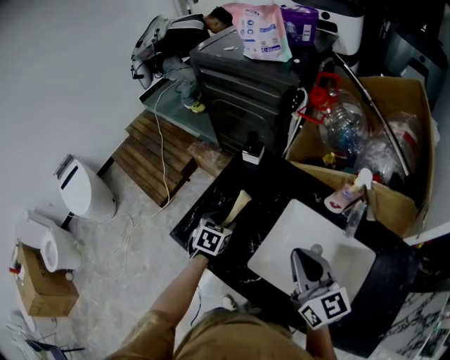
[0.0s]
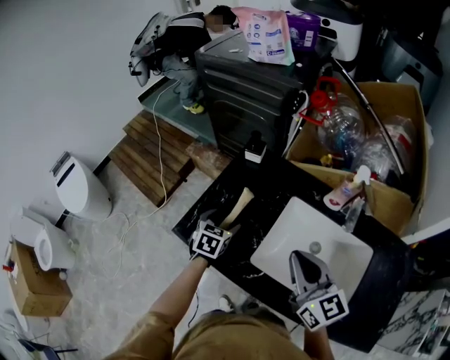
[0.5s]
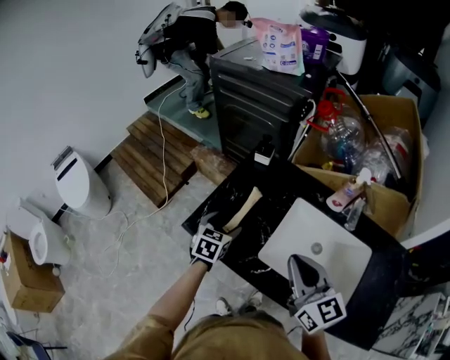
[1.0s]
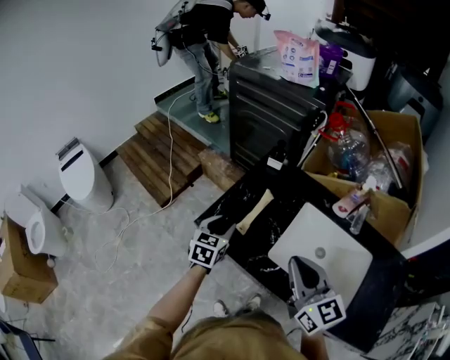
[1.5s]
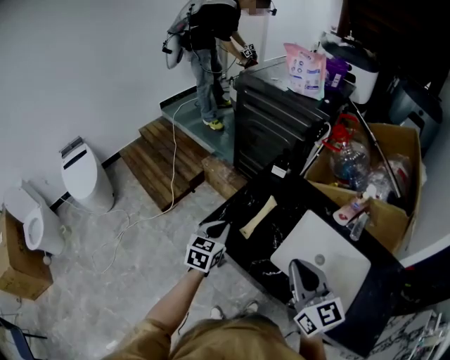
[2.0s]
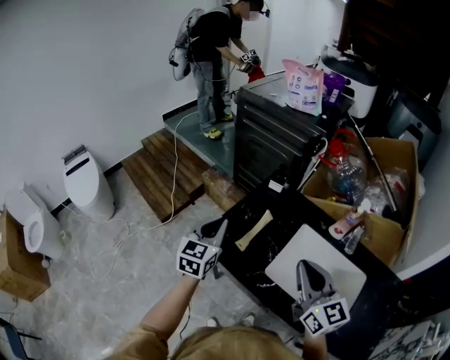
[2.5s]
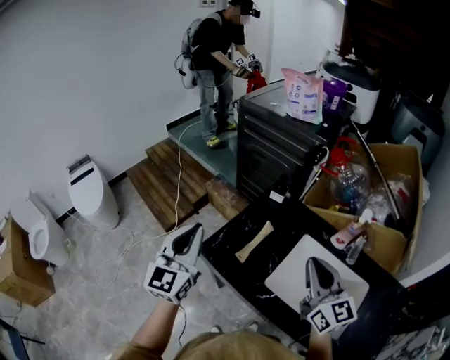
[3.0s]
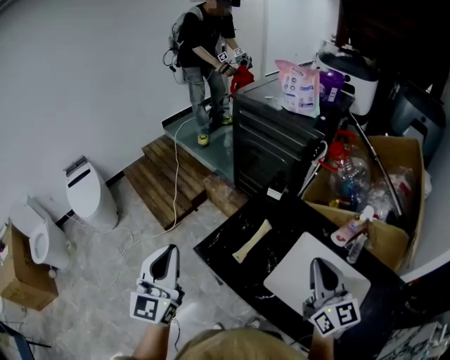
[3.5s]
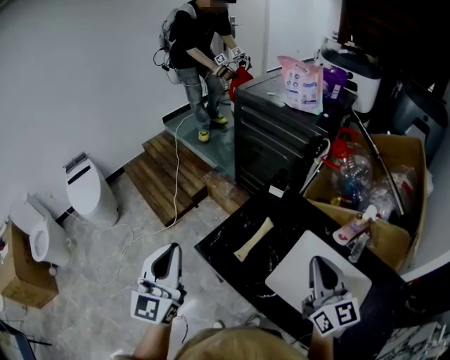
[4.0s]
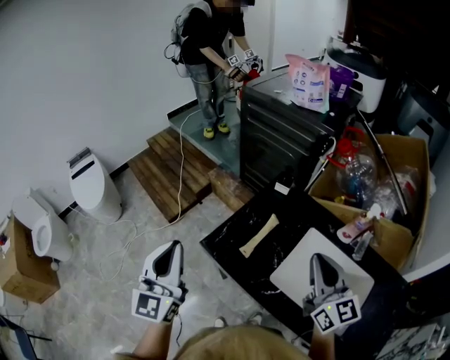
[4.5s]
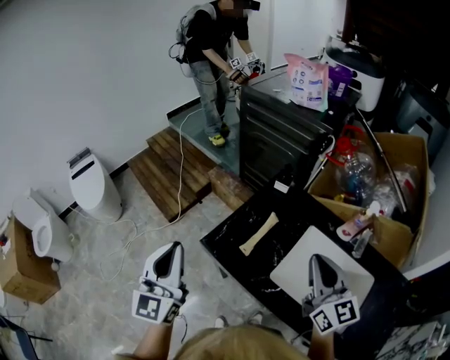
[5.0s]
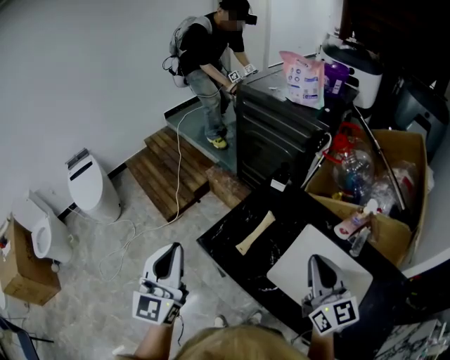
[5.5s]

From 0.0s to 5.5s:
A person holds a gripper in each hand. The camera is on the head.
From 0.0s to 2.0s: The right gripper is displaced to the left and backward by roughly 15 cm, while the left gripper is displaced to the left, backward and upward by roughly 20 cm, rotates approximately 30 degrees, and closes.
From 2.0s to 3.5s: The left gripper heads upward and to the left, covering some 25 cm, and points its fingers some 30 degrees further upward. The right gripper travels to the right and forward by some 10 cm.
From 3.5s to 5.5s: The grippers make only small movements.

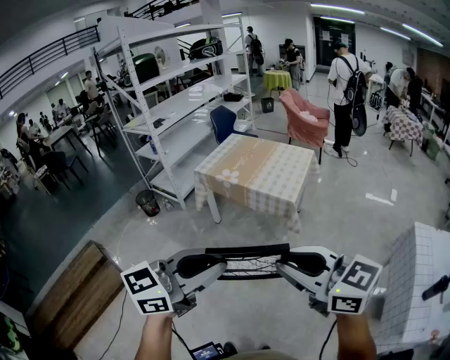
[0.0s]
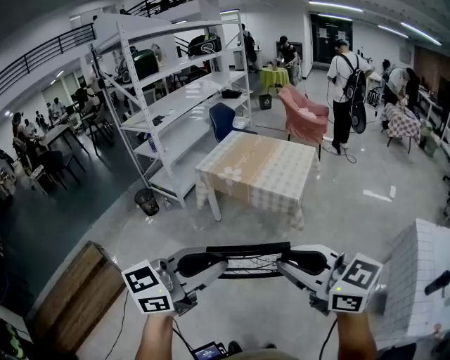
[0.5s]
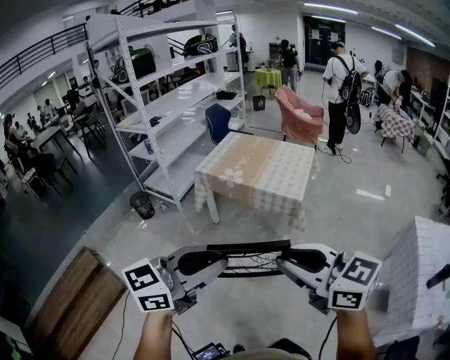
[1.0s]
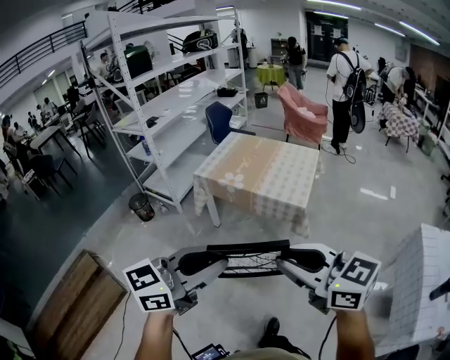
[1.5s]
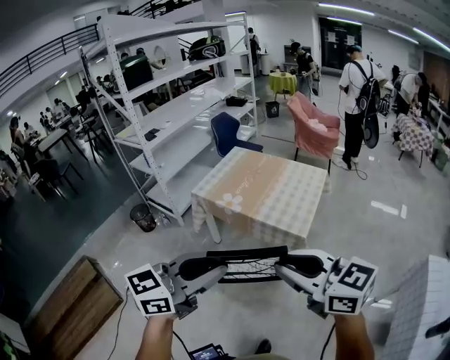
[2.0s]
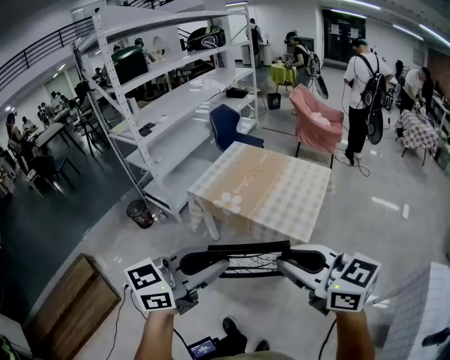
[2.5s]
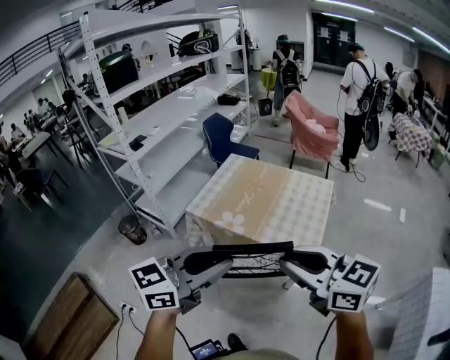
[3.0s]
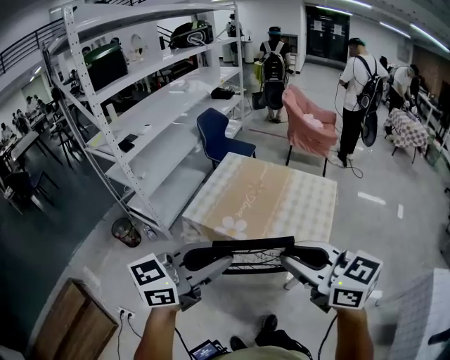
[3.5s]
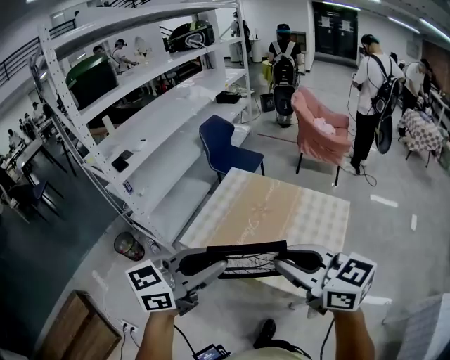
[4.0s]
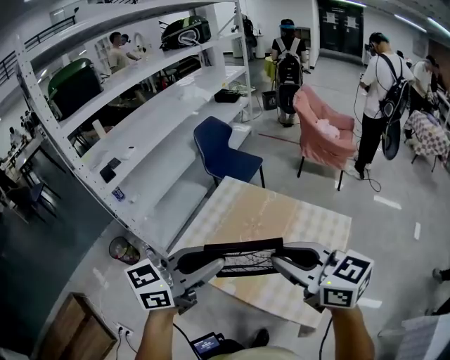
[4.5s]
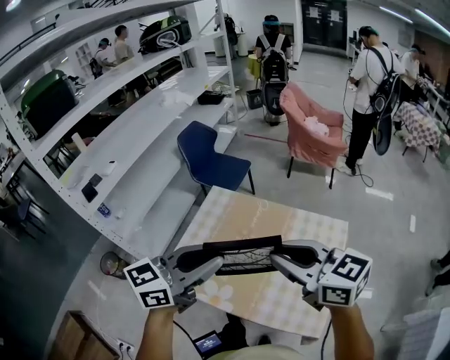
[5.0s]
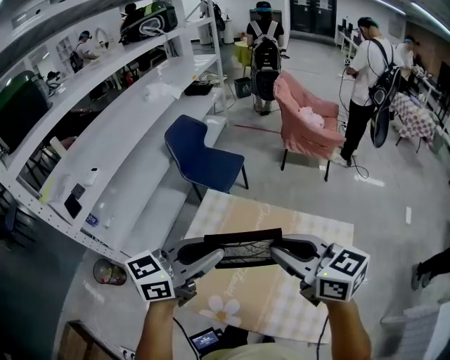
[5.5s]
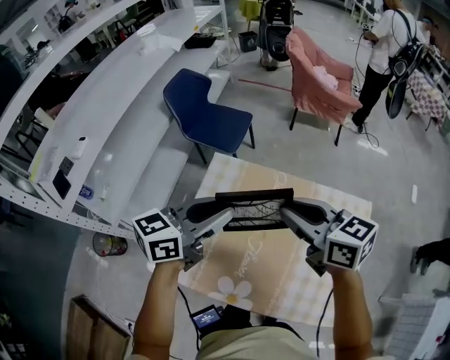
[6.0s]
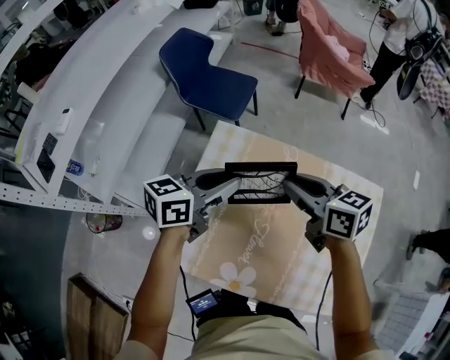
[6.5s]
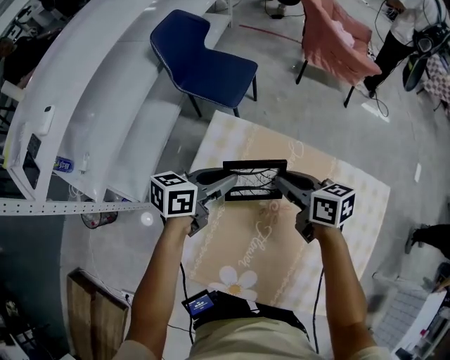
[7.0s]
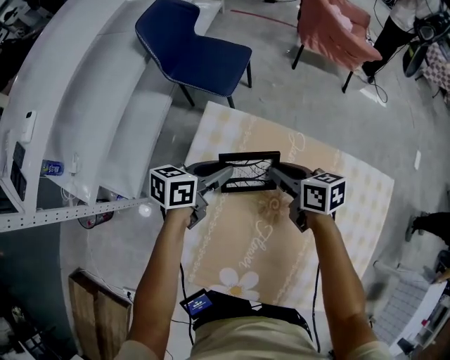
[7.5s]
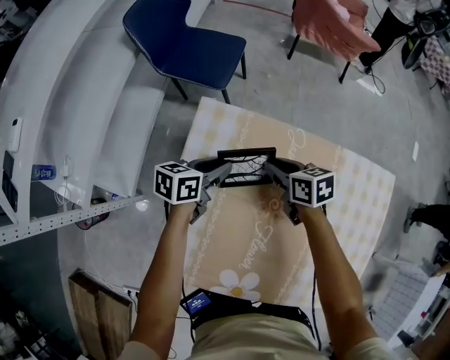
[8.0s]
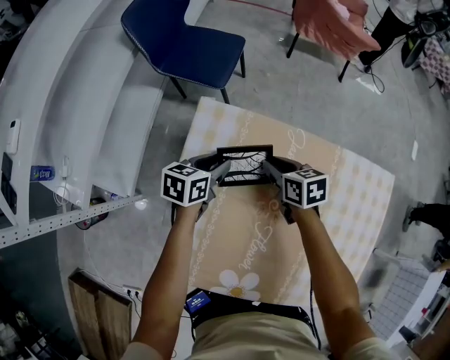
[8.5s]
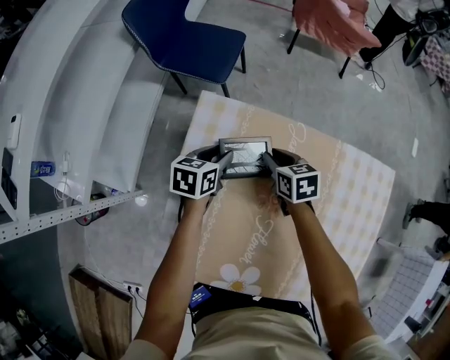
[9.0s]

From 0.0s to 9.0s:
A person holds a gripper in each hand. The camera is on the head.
From 0.0s to 2.0s: Both grippers move forward, about 25 cm.
From 2.0s to 4.5s: Both grippers are carried forward, approximately 60 cm.
From 4.5s to 7.0s: The pair of grippers is taken forward, roughly 40 cm. The two grippers go roughly 35 cm downward. The left gripper changes its angle by about 30 degrees; the right gripper changes its angle by about 40 degrees.
From 7.0s to 9.0s: The right gripper is displaced downward by approximately 15 cm, and turns by approximately 20 degrees. Meanwhile the left gripper travels downward and forward by some 15 cm, and turns by roughly 20 degrees.

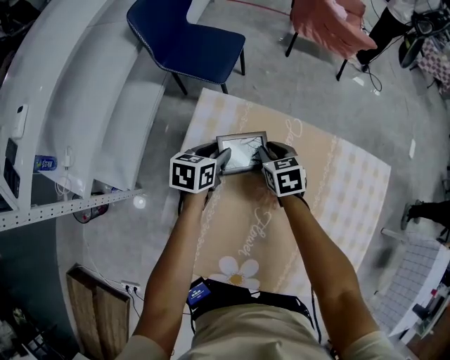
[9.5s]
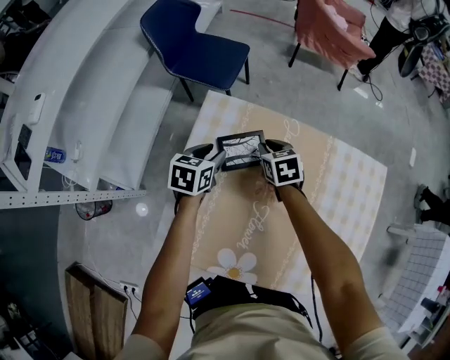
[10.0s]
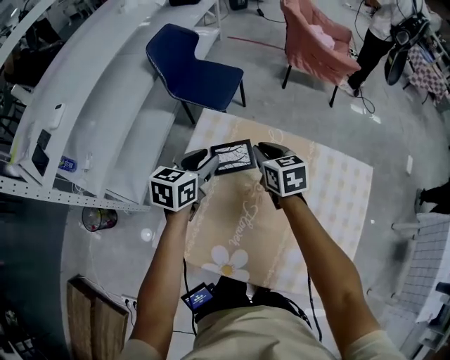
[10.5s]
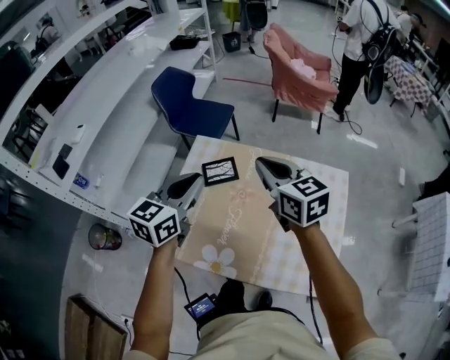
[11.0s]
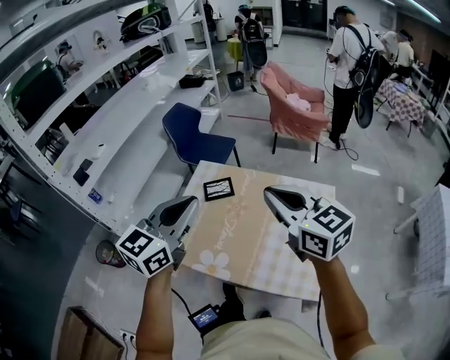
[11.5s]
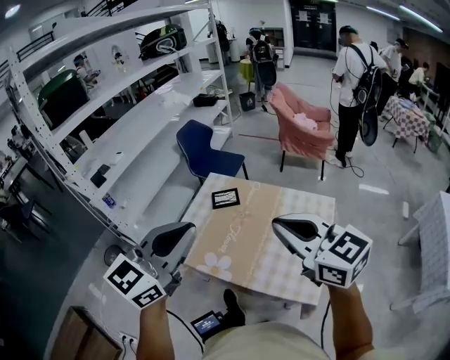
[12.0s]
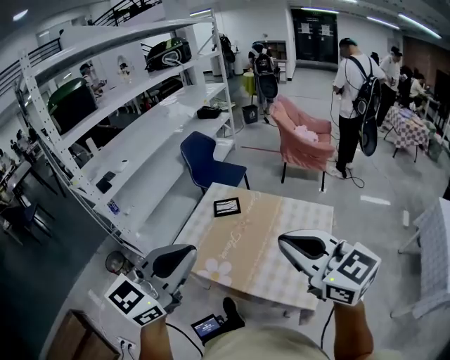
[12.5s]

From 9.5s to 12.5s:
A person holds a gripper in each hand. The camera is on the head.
From 9.5s to 11.0s: Both grippers travel together upward and backward, approximately 40 cm. The right gripper tips its fingers upward by about 30 degrees, and closes its fingers. The left gripper rotates approximately 30 degrees, and closes up.
From 11.0s to 12.5s: The grippers both shift backward and upward by roughly 40 cm. The right gripper rotates some 20 degrees, while the left gripper rotates approximately 20 degrees.

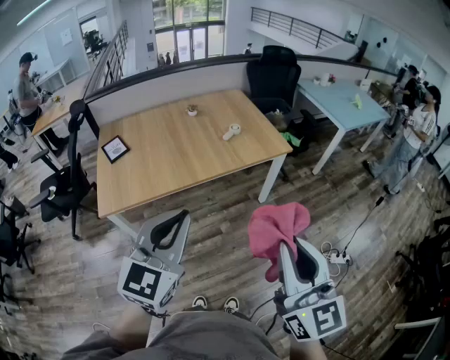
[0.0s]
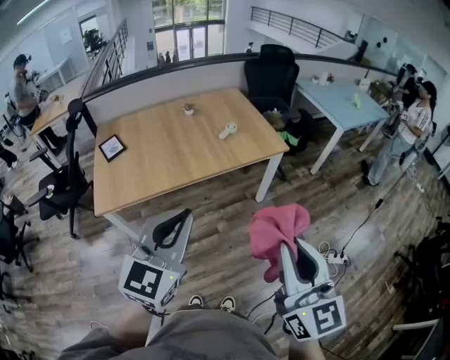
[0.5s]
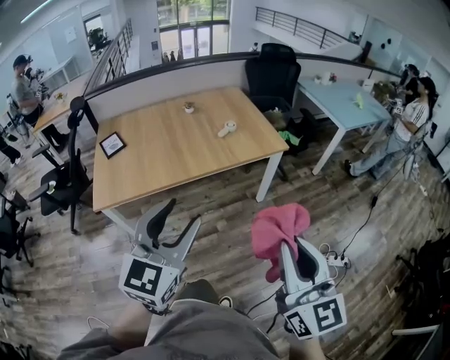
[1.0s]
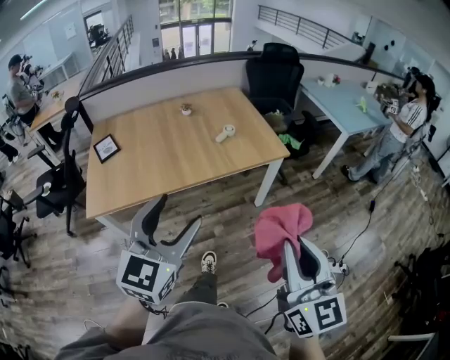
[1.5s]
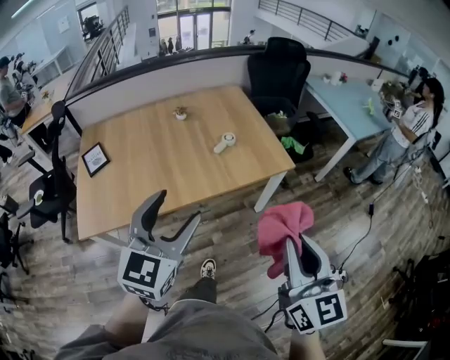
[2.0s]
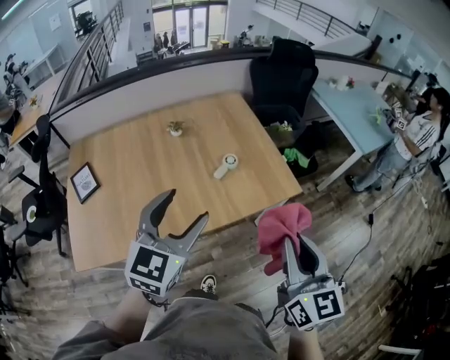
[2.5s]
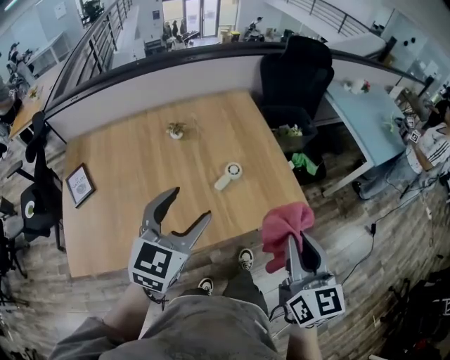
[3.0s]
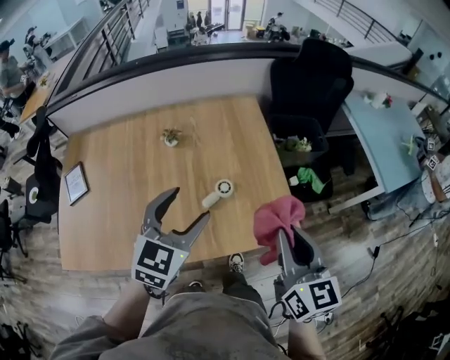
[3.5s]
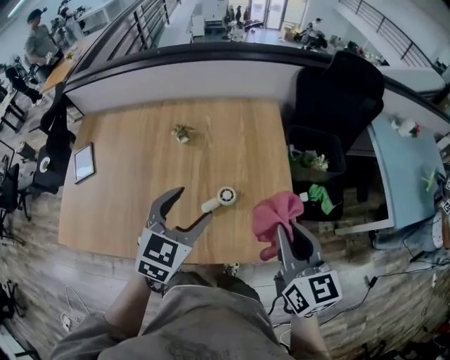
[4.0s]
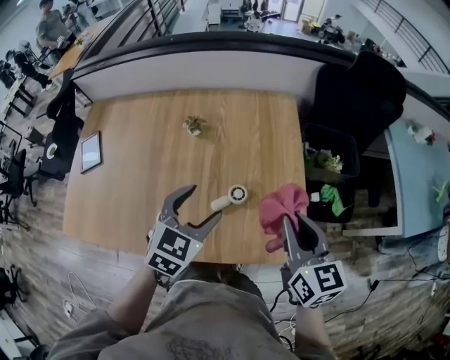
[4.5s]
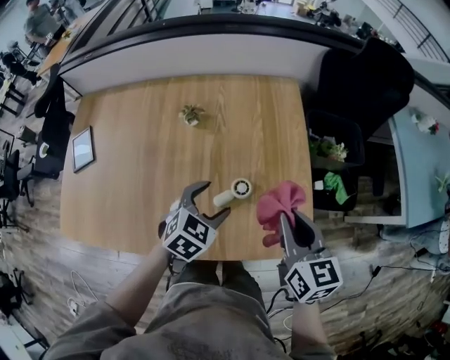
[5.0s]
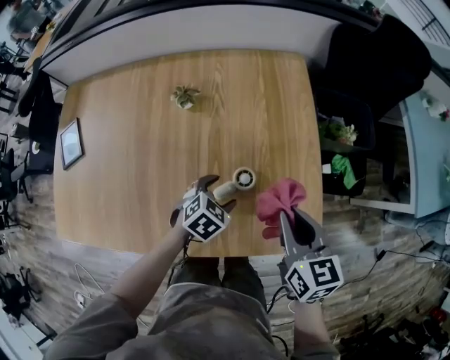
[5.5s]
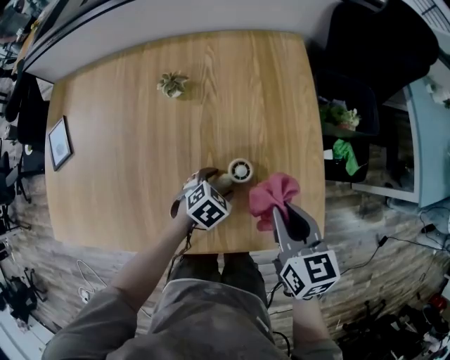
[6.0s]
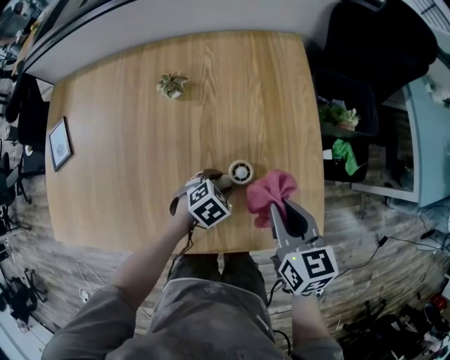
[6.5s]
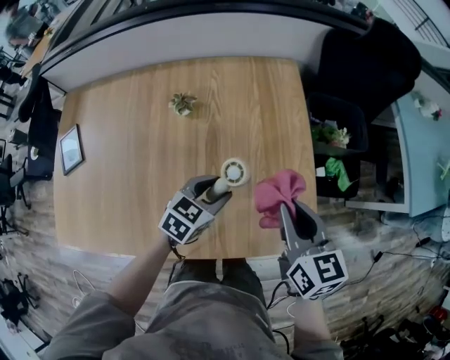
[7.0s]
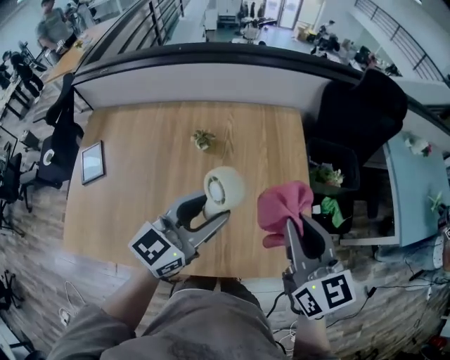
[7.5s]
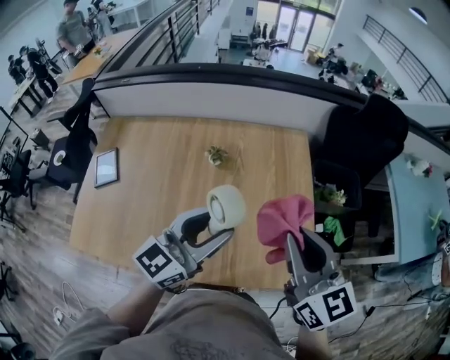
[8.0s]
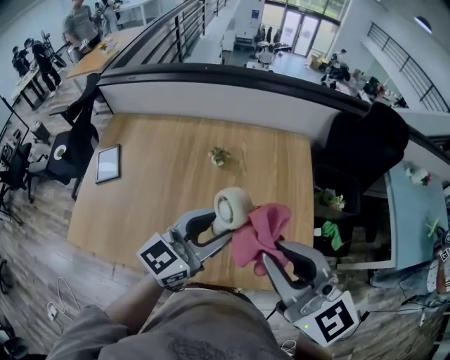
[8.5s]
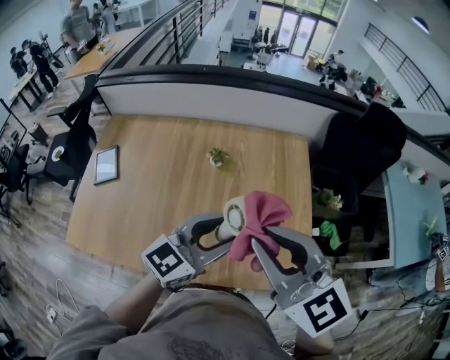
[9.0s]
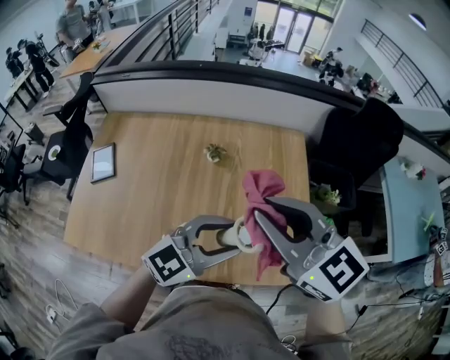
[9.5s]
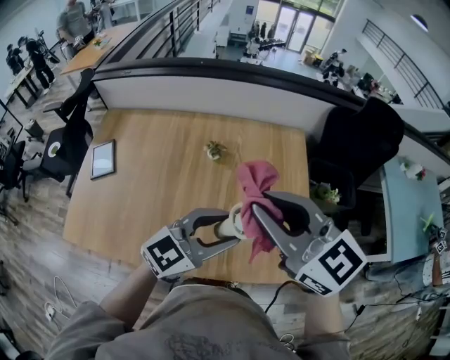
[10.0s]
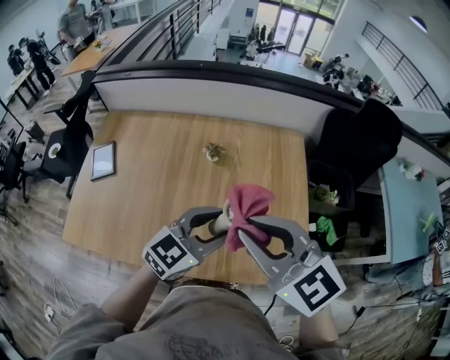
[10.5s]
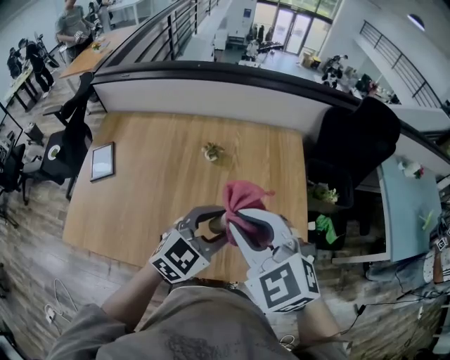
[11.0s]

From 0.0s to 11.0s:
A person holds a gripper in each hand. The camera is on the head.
From 0.0s to 2.0s: The grippers both shift forward by some 25 cm. The left gripper opens its fingers.
From 2.0s to 3.5s: The grippers both shift forward by roughly 40 cm.
From 3.5s to 5.5s: The left gripper travels downward by roughly 30 cm, and tilts its fingers some 40 degrees downward. Meanwhile the right gripper heads downward and forward, covering approximately 20 cm, and turns by some 20 degrees.
From 5.5s to 7.5s: The left gripper goes roughly 30 cm upward, angles its fingers upward, by about 50 degrees, and closes up; the right gripper goes roughly 20 cm upward, and rotates roughly 20 degrees.
From 7.5s to 9.0s: The right gripper shifts approximately 15 cm to the left, upward and backward, and swivels approximately 30 degrees.
From 9.0s to 11.0s: The right gripper heads downward, covering about 5 cm, and swivels some 30 degrees; the left gripper changes its angle by about 20 degrees.
